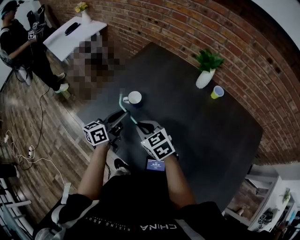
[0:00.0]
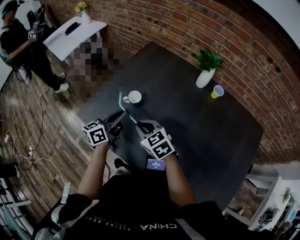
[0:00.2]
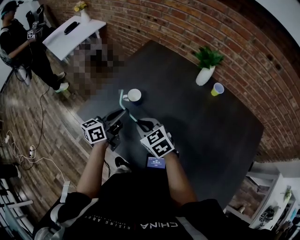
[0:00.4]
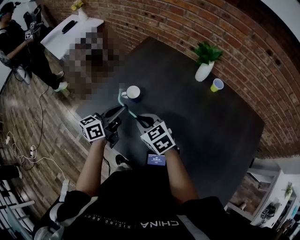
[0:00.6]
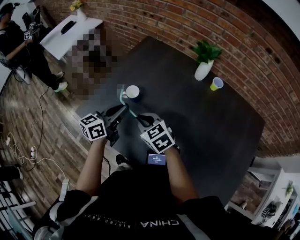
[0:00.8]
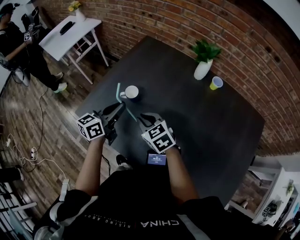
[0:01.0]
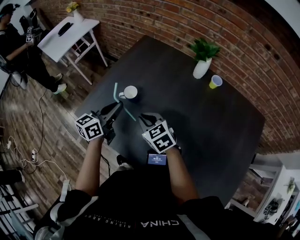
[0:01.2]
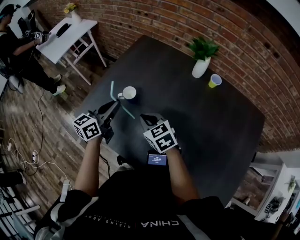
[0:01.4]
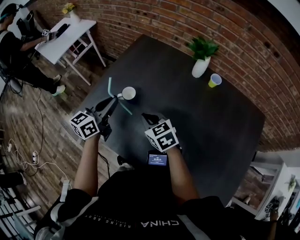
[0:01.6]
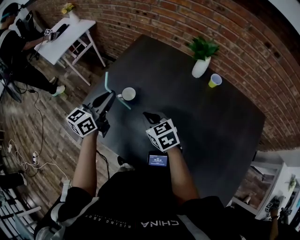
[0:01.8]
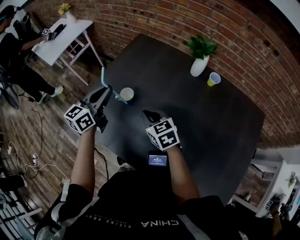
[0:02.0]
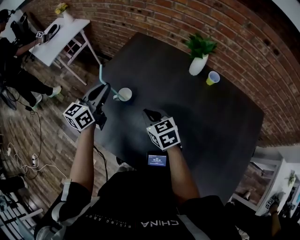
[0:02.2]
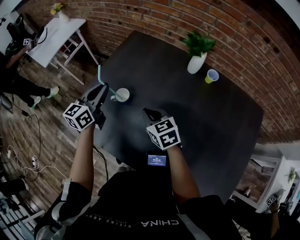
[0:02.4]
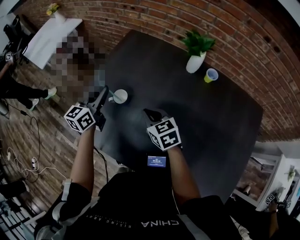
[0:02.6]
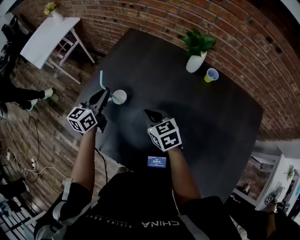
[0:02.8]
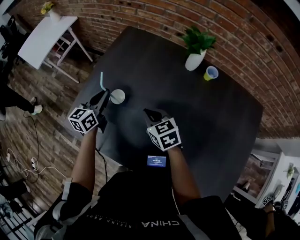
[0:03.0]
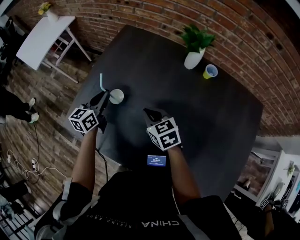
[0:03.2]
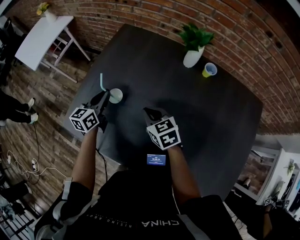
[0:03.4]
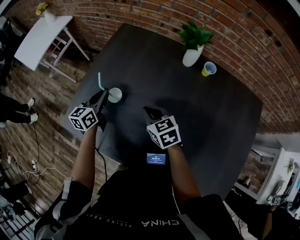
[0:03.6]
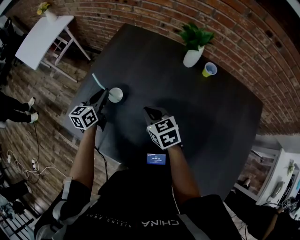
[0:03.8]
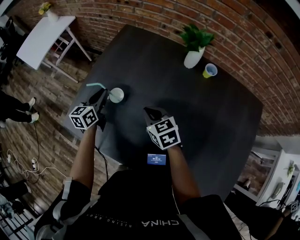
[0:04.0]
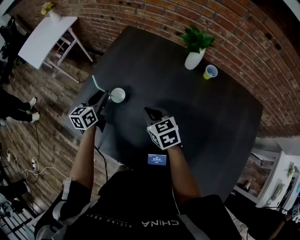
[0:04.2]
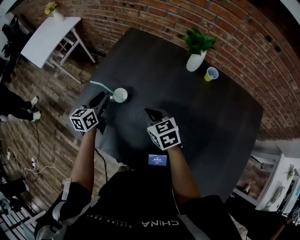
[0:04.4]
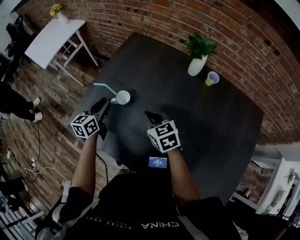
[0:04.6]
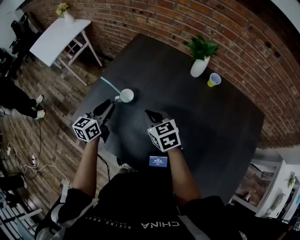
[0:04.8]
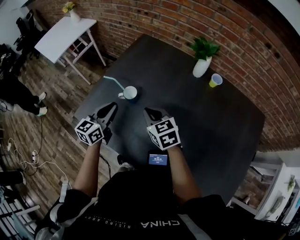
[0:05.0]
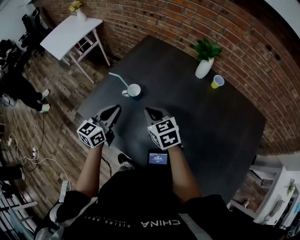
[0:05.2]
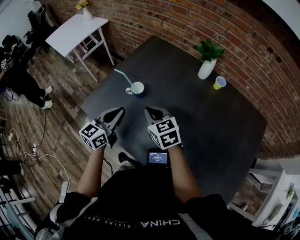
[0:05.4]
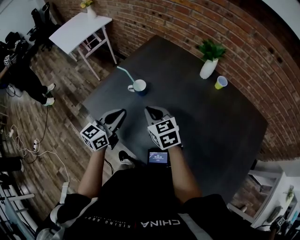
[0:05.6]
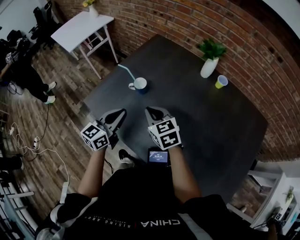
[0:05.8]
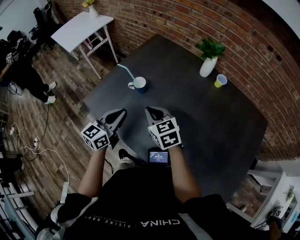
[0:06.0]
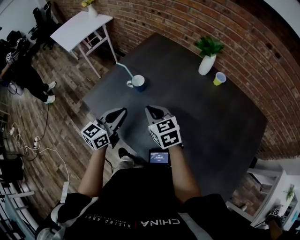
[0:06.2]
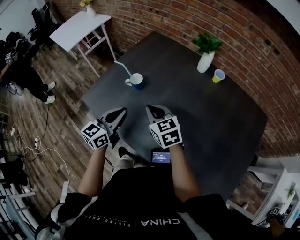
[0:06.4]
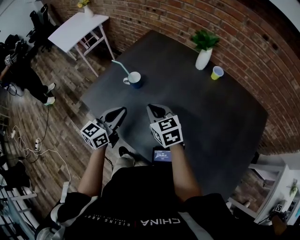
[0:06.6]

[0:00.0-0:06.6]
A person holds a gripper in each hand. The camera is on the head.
0:00.0 to 0:01.6: The right gripper ends up roughly 5 cm from where it was; the left gripper changes place by some 5 cm.
0:01.6 to 0:03.2: The left gripper is displaced forward and downward by about 15 cm. Meanwhile the right gripper goes some 5 cm forward.
0:03.2 to 0:05.0: The left gripper heads backward, covering about 10 cm, while the right gripper ends up roughly 5 cm from where it was.
0:05.0 to 0:06.6: The left gripper shifts roughly 15 cm backward. Meanwhile the right gripper heads backward, covering roughly 10 cm.

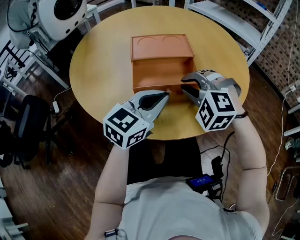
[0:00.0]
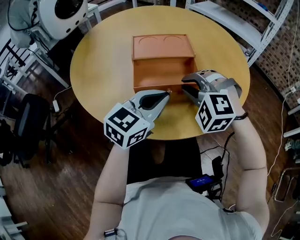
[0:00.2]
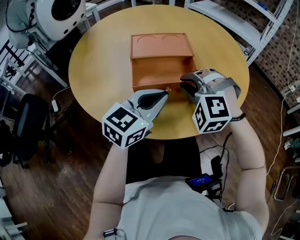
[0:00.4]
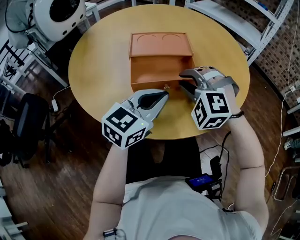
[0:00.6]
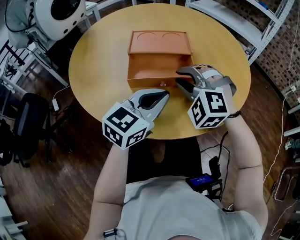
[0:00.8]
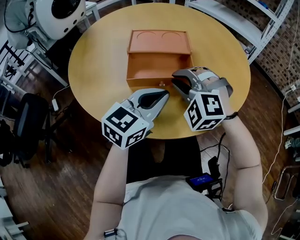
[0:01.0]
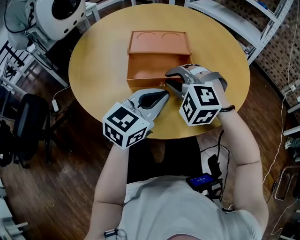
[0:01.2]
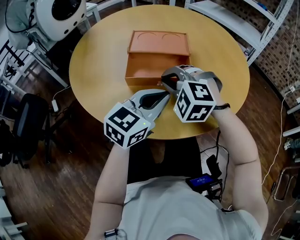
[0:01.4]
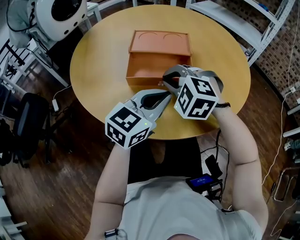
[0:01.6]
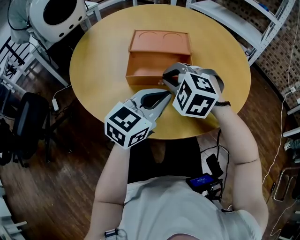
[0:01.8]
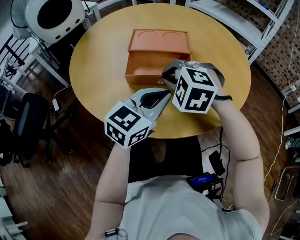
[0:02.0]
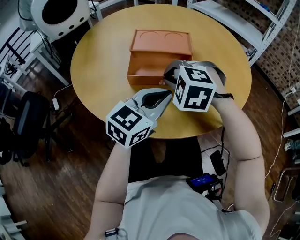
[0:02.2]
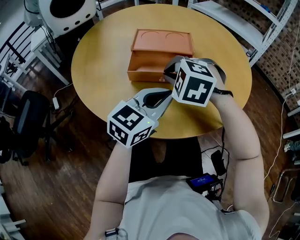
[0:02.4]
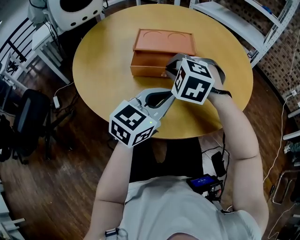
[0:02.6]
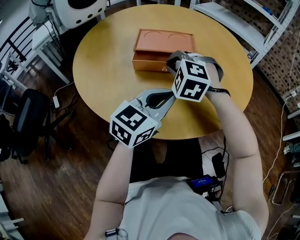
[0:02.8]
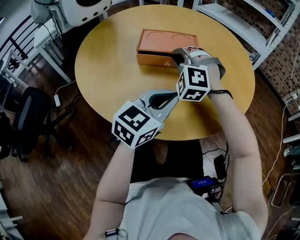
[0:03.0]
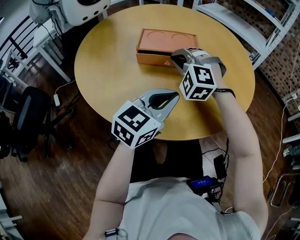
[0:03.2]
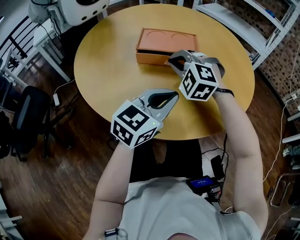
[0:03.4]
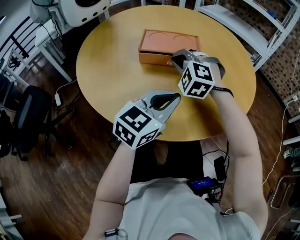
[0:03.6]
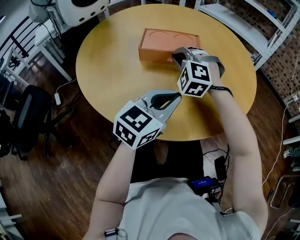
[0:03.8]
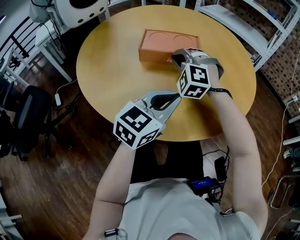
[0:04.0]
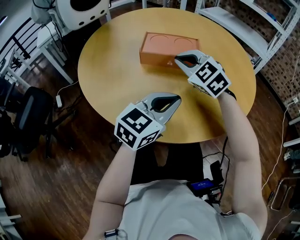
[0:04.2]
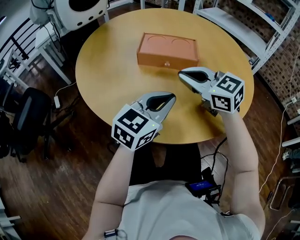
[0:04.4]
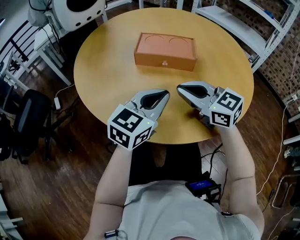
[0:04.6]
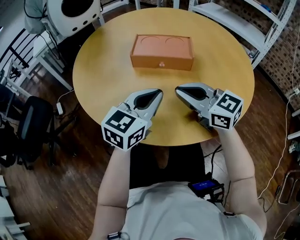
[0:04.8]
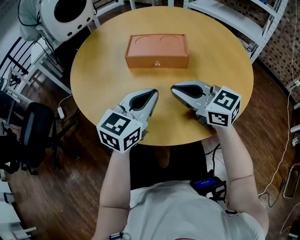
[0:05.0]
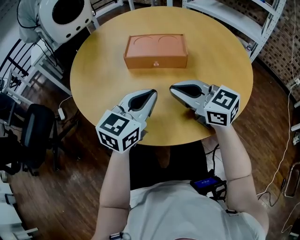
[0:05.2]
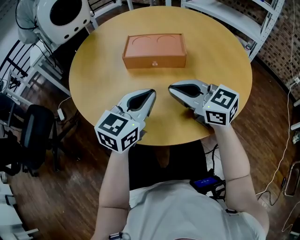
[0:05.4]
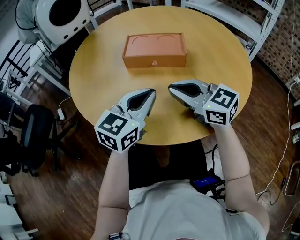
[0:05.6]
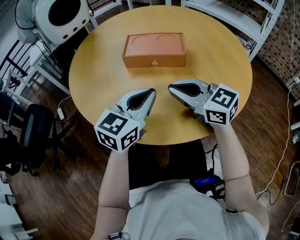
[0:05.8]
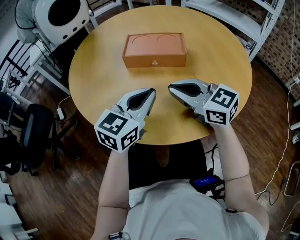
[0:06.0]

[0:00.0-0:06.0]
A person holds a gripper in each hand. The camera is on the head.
0:00.0 to 0:01.6: The right gripper travels to the left by roughly 5 cm.
0:01.6 to 0:03.0: The right gripper shifts some 10 cm forward, and rotates roughly 30 degrees.
0:03.0 to 0:04.4: The right gripper is displaced backward by roughly 10 cm, and rolls clockwise, seen from behind, by some 60 degrees.
0:04.4 to 0:06.0: There are only small adjustments of the grippers.

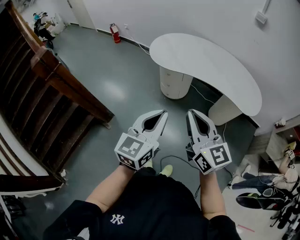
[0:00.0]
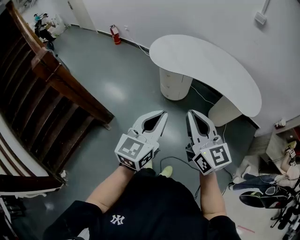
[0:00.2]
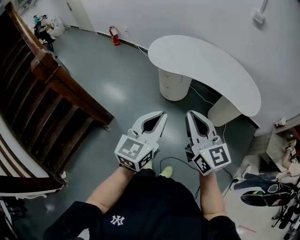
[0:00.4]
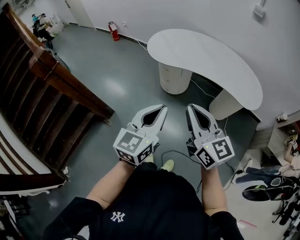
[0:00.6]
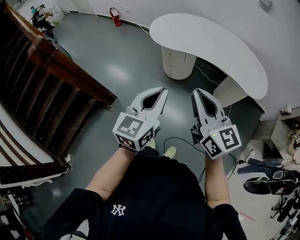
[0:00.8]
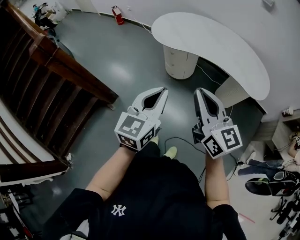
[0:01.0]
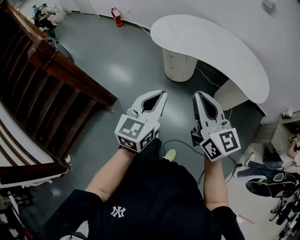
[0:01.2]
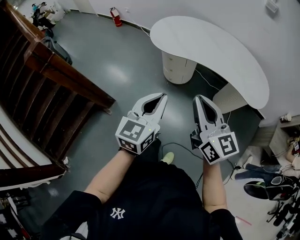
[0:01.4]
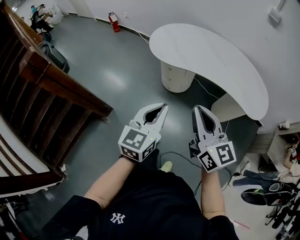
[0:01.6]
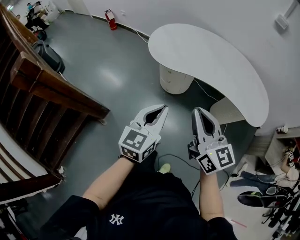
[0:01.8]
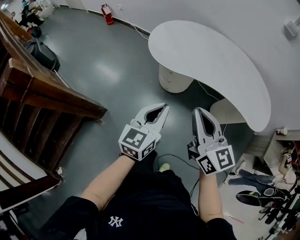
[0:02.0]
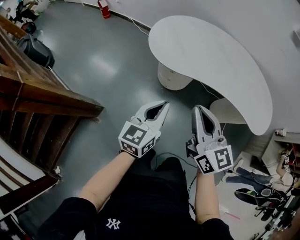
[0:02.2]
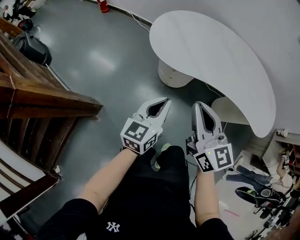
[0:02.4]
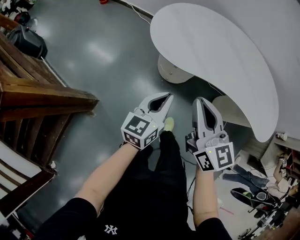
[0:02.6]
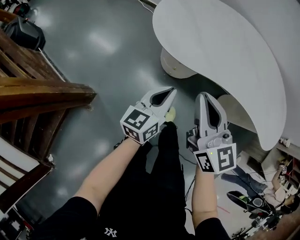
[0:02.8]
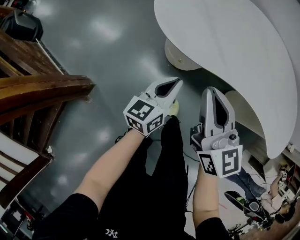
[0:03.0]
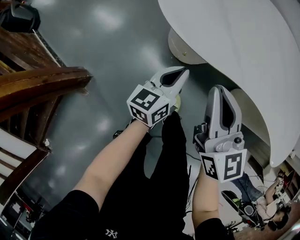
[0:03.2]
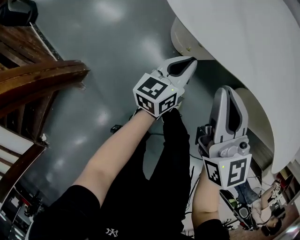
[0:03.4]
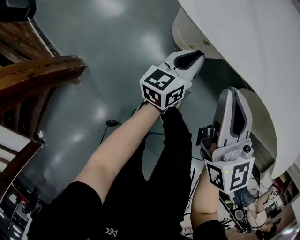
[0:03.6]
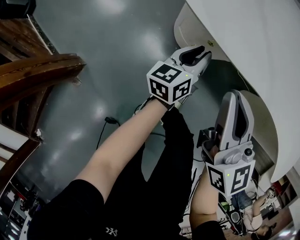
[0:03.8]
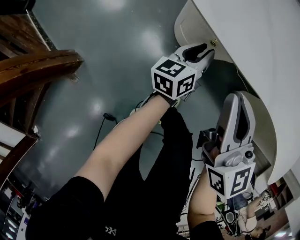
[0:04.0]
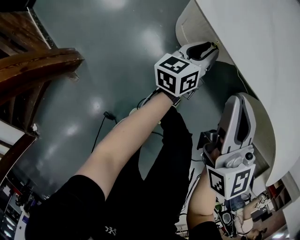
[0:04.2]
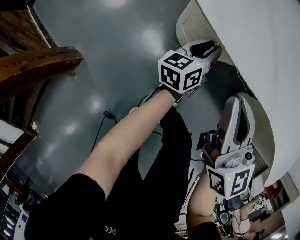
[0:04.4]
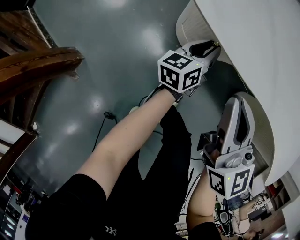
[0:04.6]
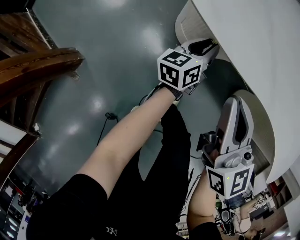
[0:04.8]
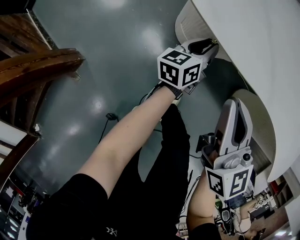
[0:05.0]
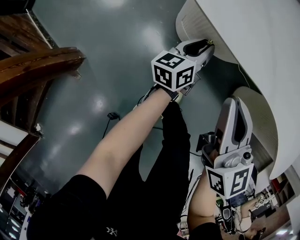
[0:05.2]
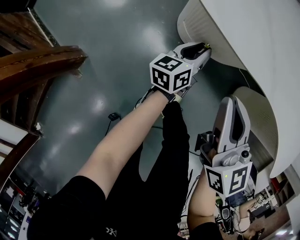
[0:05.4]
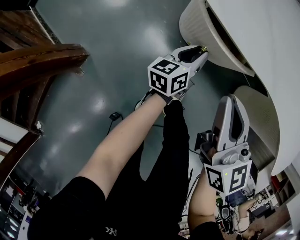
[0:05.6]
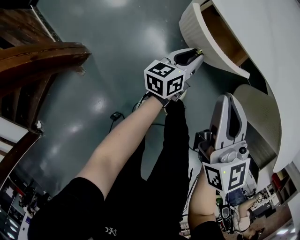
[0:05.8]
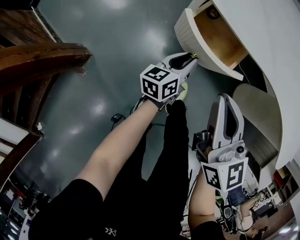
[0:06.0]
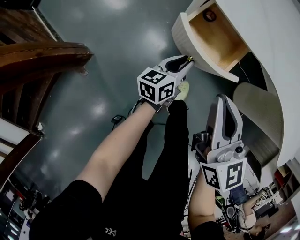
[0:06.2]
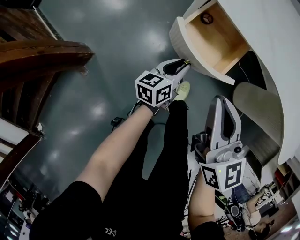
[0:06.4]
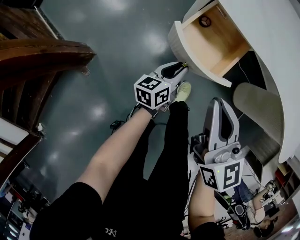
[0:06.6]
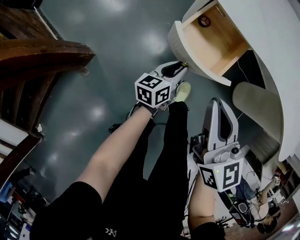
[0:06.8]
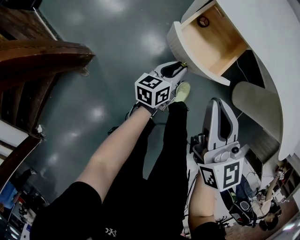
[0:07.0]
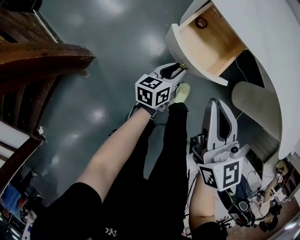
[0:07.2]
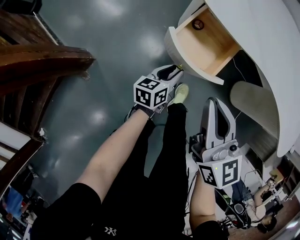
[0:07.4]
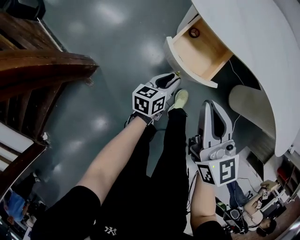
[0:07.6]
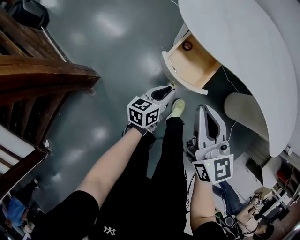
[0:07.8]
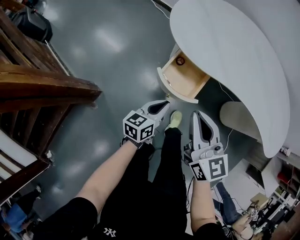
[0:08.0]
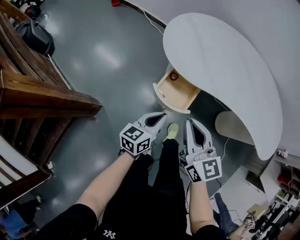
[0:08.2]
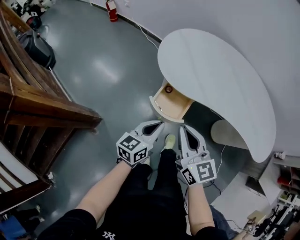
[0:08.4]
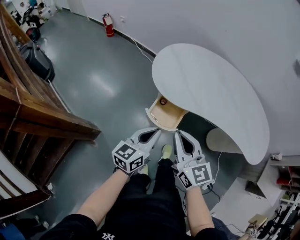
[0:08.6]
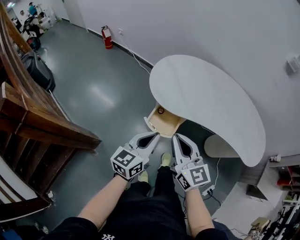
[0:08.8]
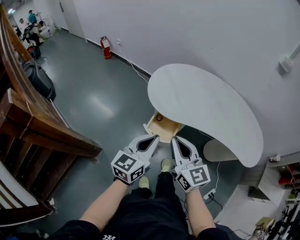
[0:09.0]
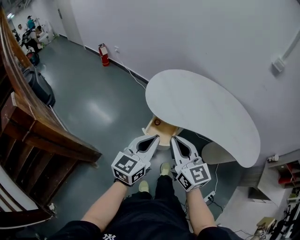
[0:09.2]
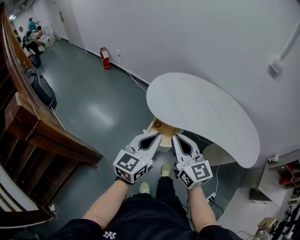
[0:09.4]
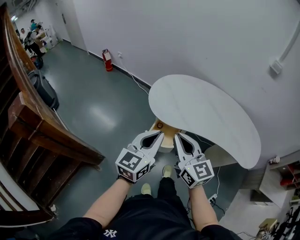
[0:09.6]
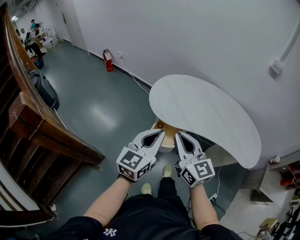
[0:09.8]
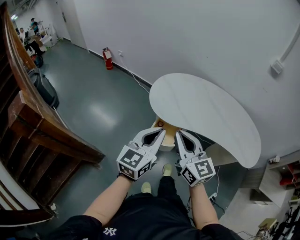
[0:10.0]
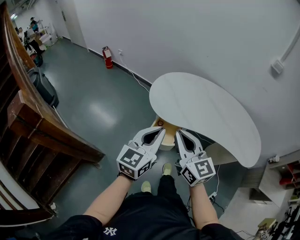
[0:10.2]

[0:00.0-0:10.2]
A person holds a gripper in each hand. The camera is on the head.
0:00.0 to 0:01.4: The left gripper ends up some 5 cm from where it was.
0:01.4 to 0:03.0: Both grippers move forward and downward, approximately 50 cm. The left gripper changes its angle by some 30 degrees.
0:03.0 to 0:04.4: The left gripper goes approximately 30 cm downward and forward, and opens its fingers, while the right gripper heads downward and forward, covering roughly 20 cm.
0:04.4 to 0:05.8: The left gripper is displaced backward and to the left by approximately 15 cm. Meanwhile the right gripper shifts roughly 10 cm backward.
0:05.8 to 0:07.2: The left gripper goes about 10 cm backward and to the left. Meanwhile the right gripper goes about 10 cm backward.
0:07.2 to 0:08.8: The left gripper shifts roughly 50 cm upward, swivels roughly 30 degrees, and closes its fingers; the right gripper heads upward, covering roughly 25 cm.
0:08.8 to 0:10.2: The grippers both shift upward by some 10 cm.

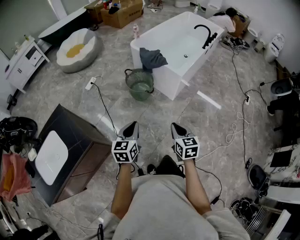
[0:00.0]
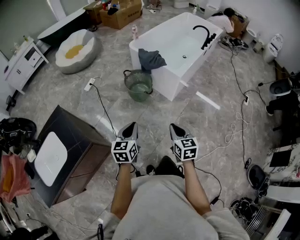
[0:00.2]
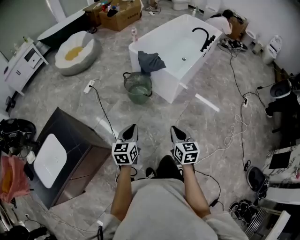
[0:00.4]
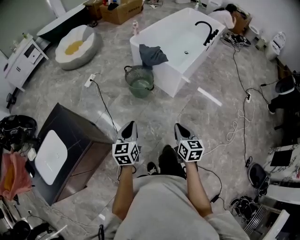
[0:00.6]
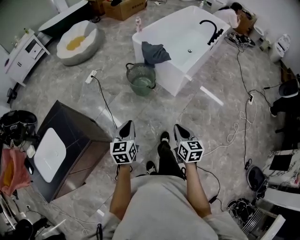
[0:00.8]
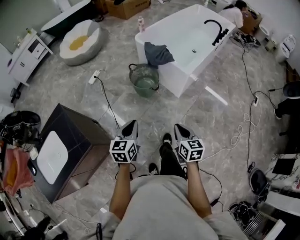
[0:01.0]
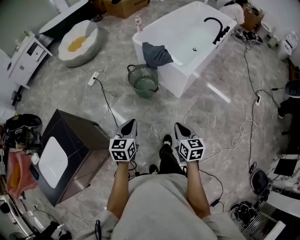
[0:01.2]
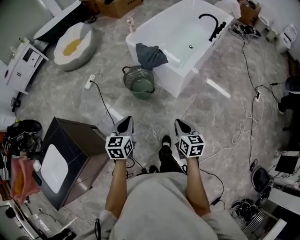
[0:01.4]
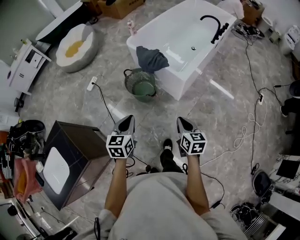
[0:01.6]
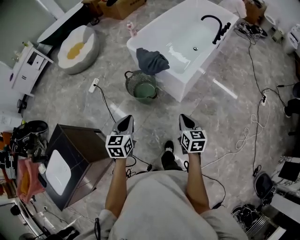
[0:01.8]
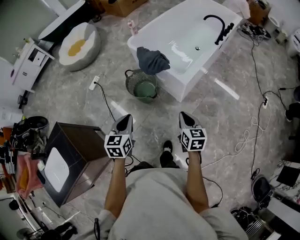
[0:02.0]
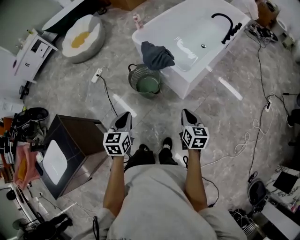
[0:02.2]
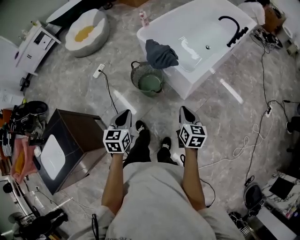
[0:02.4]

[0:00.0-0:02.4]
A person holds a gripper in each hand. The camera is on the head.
0:00.0 to 0:01.2: The two grippers go some 10 cm forward.
0:01.2 to 0:02.4: The left gripper moves forward, about 15 cm; the right gripper is displaced forward and to the right by approximately 20 cm.
